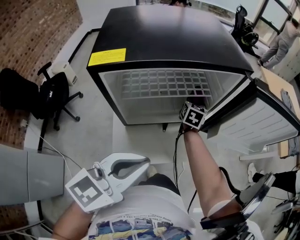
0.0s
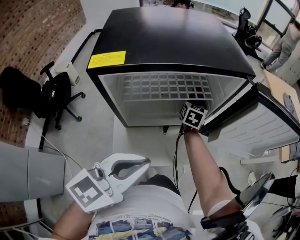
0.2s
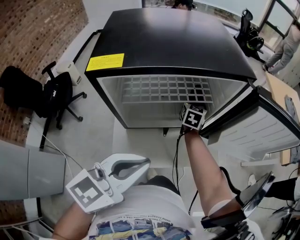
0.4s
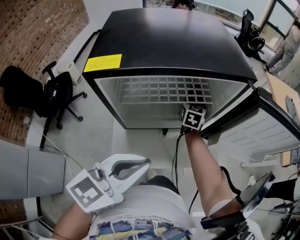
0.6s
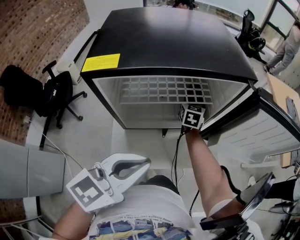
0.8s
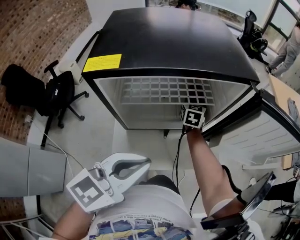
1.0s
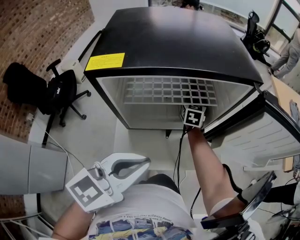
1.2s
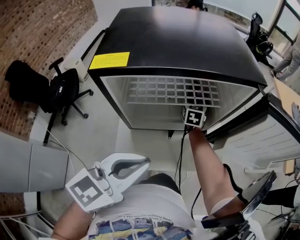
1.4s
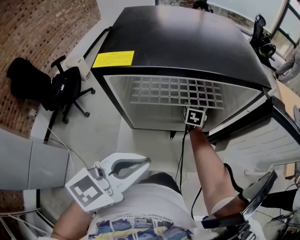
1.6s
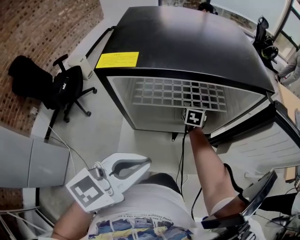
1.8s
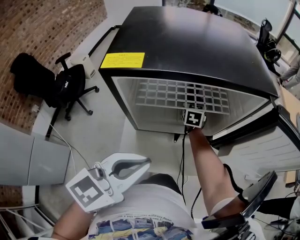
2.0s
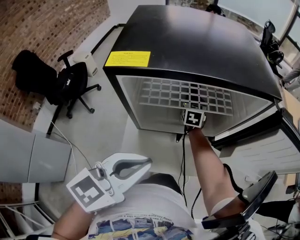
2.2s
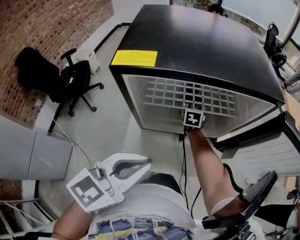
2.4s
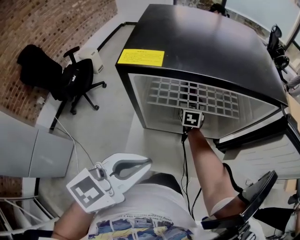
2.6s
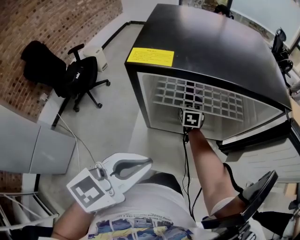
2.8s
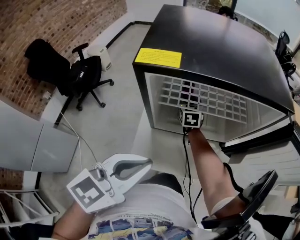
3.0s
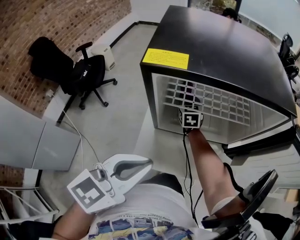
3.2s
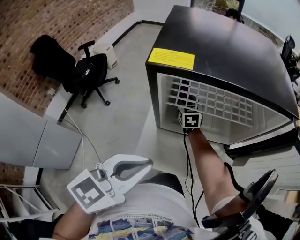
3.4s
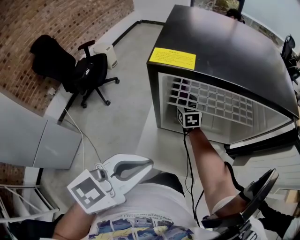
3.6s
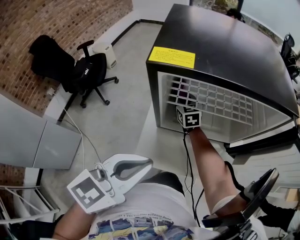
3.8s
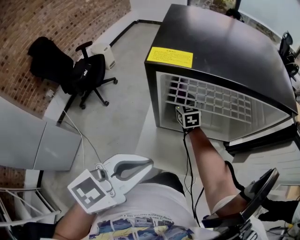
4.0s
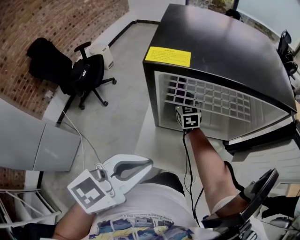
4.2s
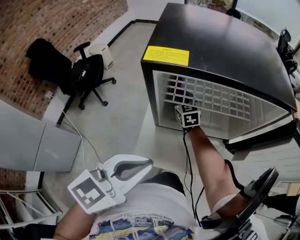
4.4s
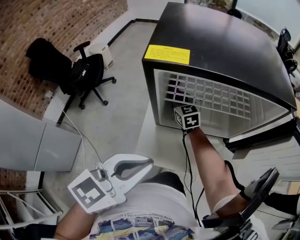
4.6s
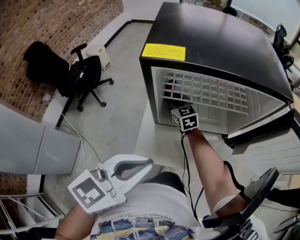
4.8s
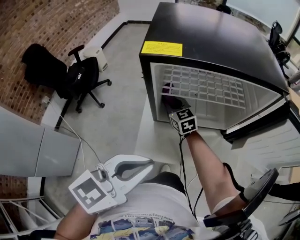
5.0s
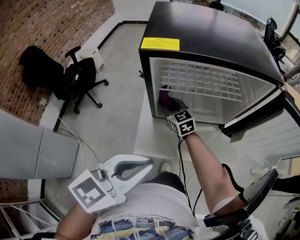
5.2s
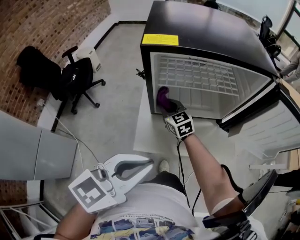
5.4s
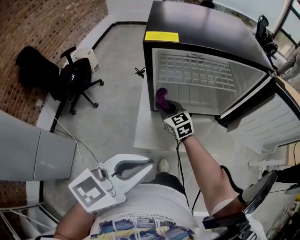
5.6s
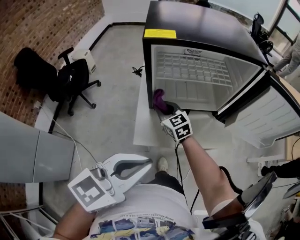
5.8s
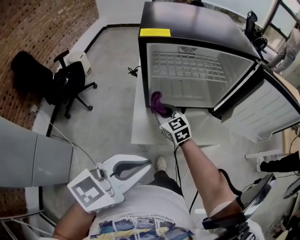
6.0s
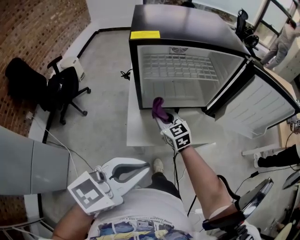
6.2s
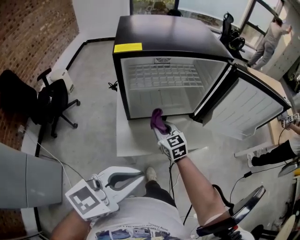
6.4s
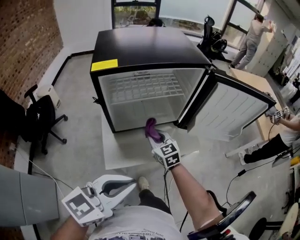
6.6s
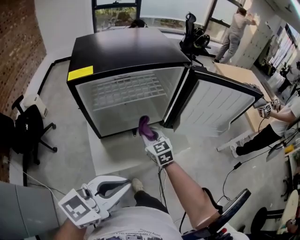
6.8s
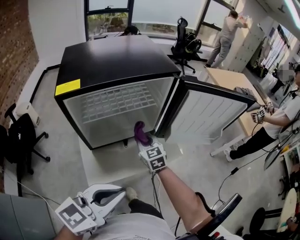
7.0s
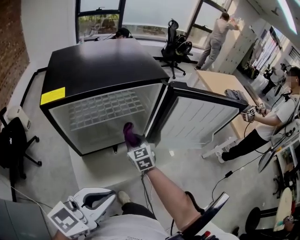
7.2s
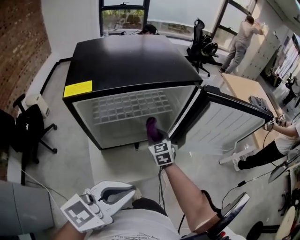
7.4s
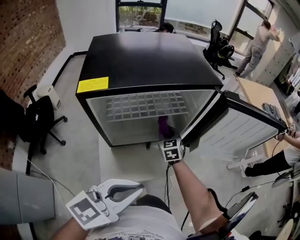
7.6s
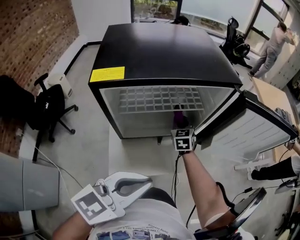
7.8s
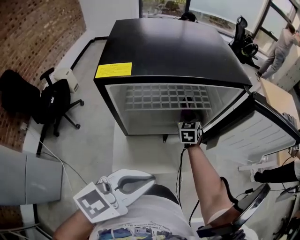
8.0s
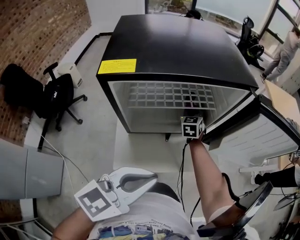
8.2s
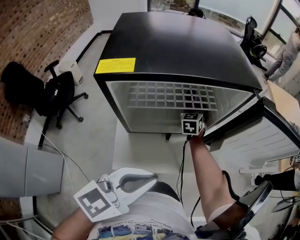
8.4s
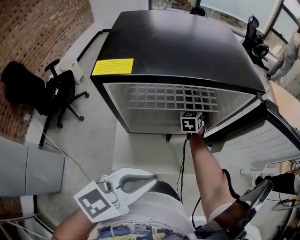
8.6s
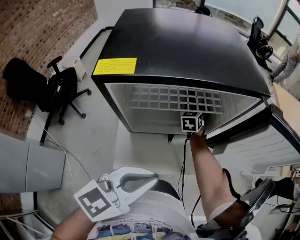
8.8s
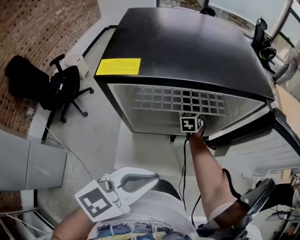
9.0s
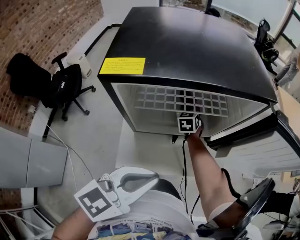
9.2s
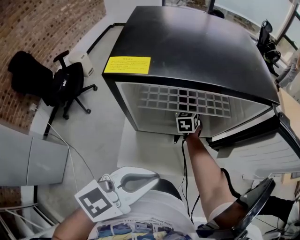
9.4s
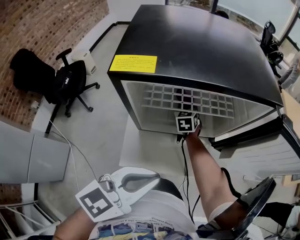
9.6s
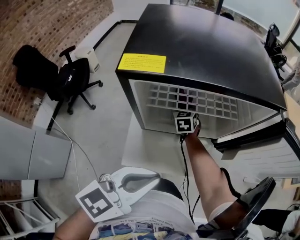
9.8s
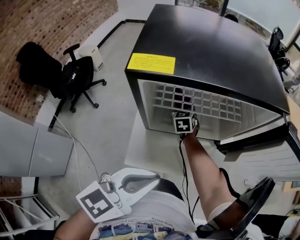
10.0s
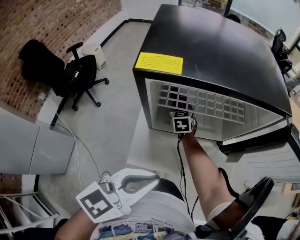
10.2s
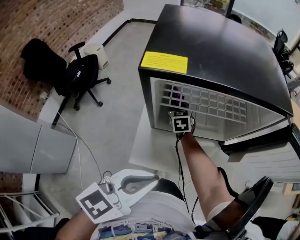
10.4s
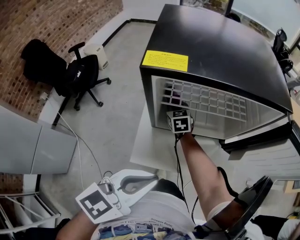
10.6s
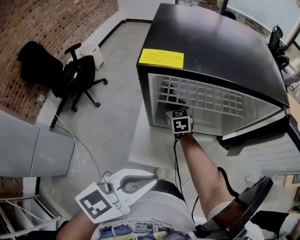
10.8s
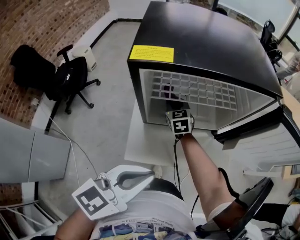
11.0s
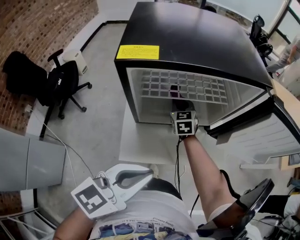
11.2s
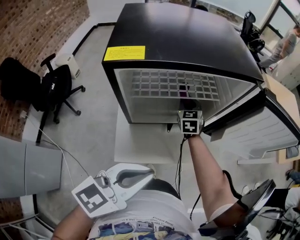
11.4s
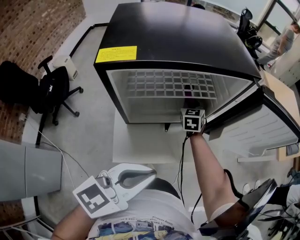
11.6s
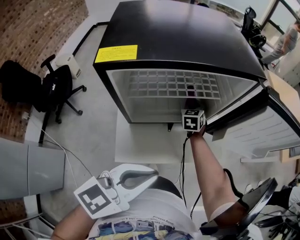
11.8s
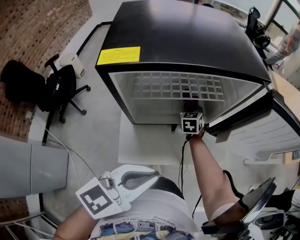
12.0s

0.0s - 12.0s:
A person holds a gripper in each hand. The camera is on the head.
0.0s - 1.6s: The right gripper moves to the left, some 10 cm.
1.6s - 3.0s: The left gripper goes some 5 cm to the left; the right gripper heads to the left, covering some 15 cm.
3.0s - 4.4s: The right gripper is displaced to the left by roughly 5 cm.
4.4s - 6.0s: The left gripper goes some 10 cm backward; the right gripper is displaced backward by about 20 cm.
6.0s - 7.6s: The left gripper ends up some 10 cm from where it was. Meanwhile the right gripper ends up about 25 cm from where it was, and rotates roughly 30 degrees.
7.6s - 9.0s: The right gripper goes some 10 cm forward and to the left.
9.0s - 10.4s: The right gripper goes roughly 20 cm to the left and backward, and rotates some 20 degrees. The left gripper shifts by about 5 cm.
10.4s - 12.0s: The right gripper goes roughly 20 cm to the right, and changes its angle by about 20 degrees.

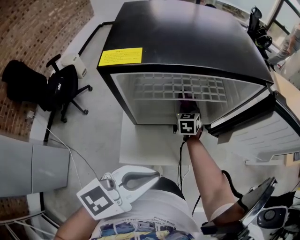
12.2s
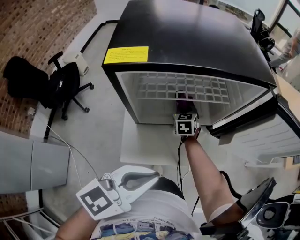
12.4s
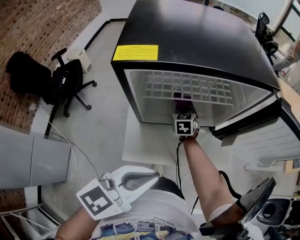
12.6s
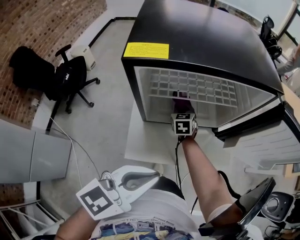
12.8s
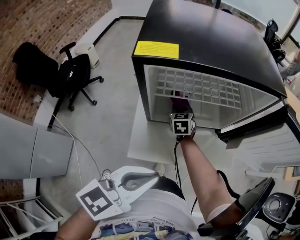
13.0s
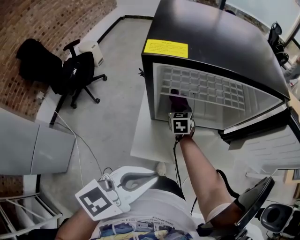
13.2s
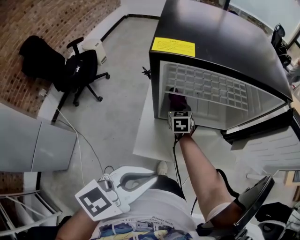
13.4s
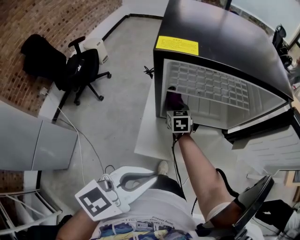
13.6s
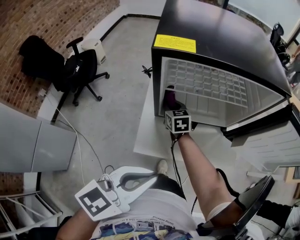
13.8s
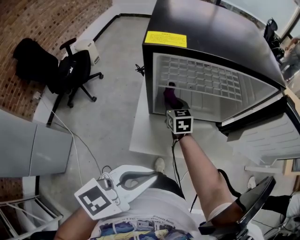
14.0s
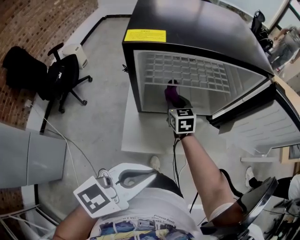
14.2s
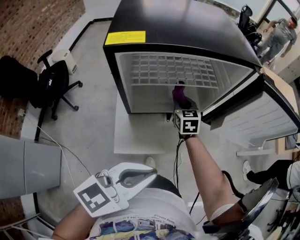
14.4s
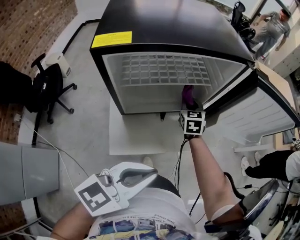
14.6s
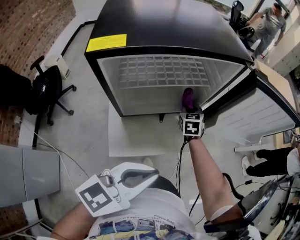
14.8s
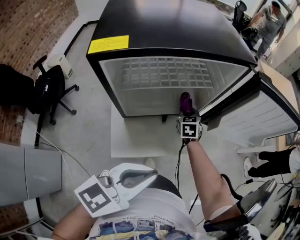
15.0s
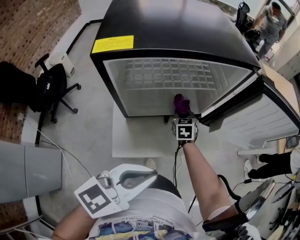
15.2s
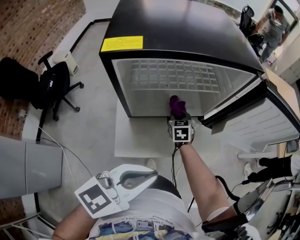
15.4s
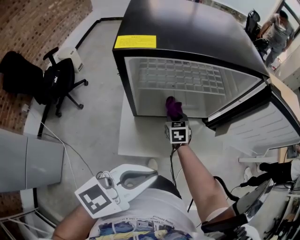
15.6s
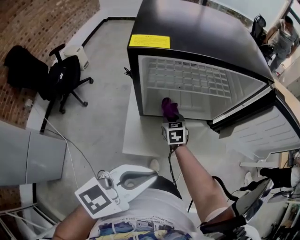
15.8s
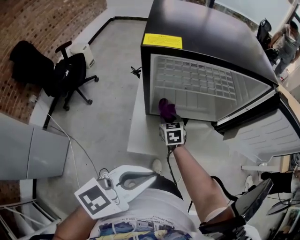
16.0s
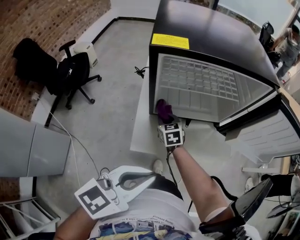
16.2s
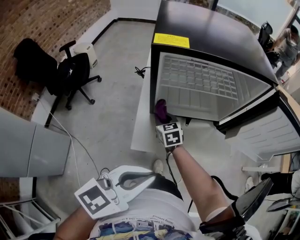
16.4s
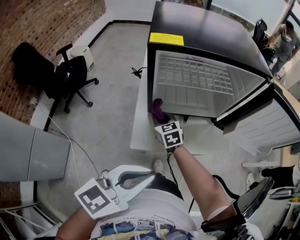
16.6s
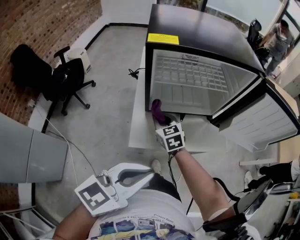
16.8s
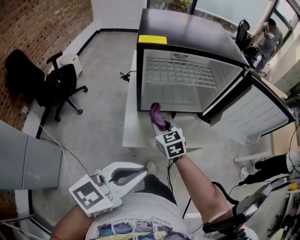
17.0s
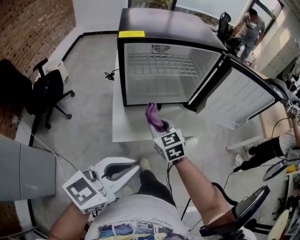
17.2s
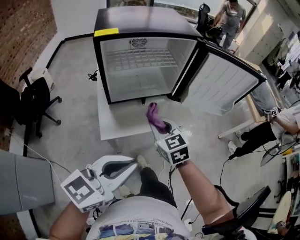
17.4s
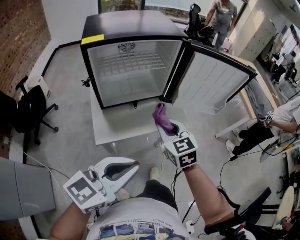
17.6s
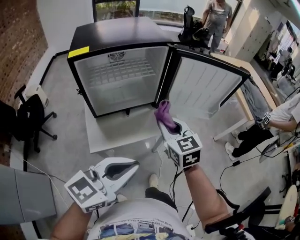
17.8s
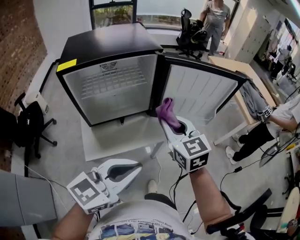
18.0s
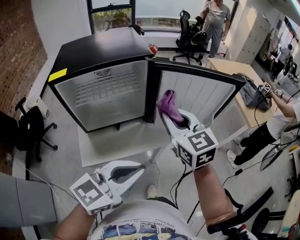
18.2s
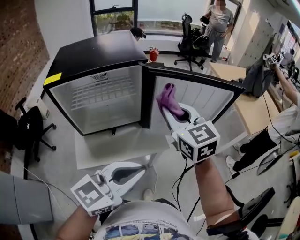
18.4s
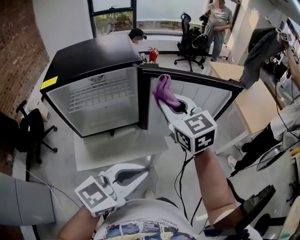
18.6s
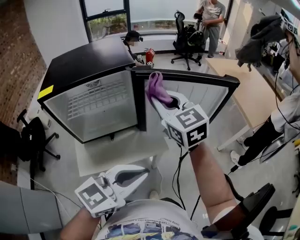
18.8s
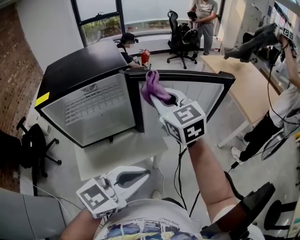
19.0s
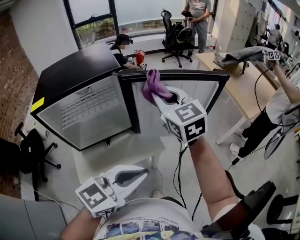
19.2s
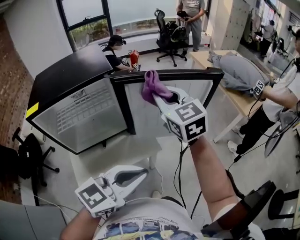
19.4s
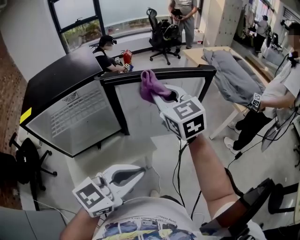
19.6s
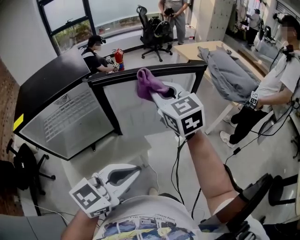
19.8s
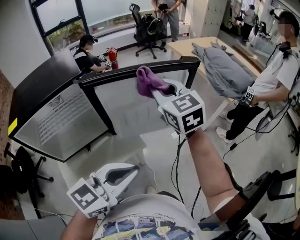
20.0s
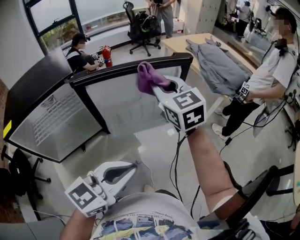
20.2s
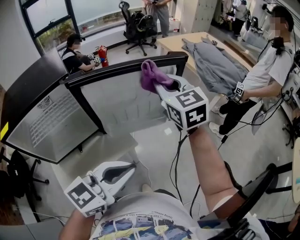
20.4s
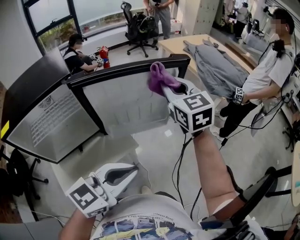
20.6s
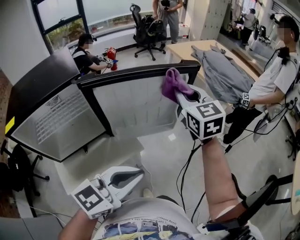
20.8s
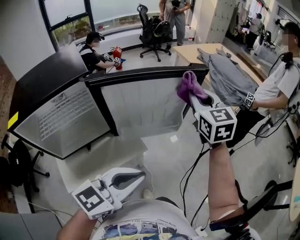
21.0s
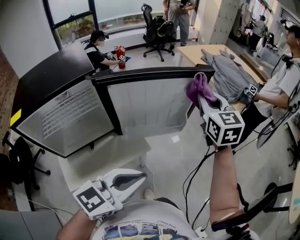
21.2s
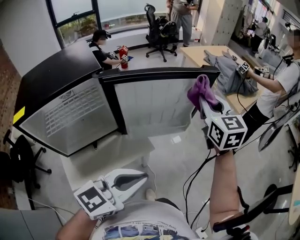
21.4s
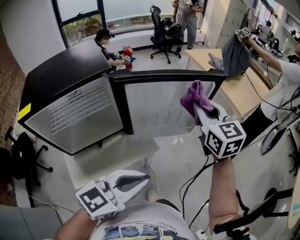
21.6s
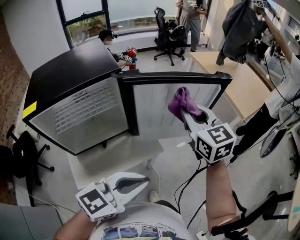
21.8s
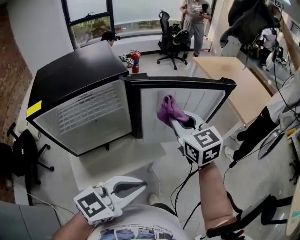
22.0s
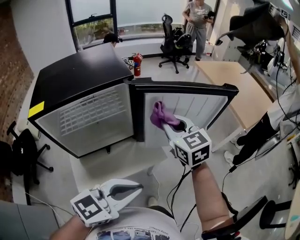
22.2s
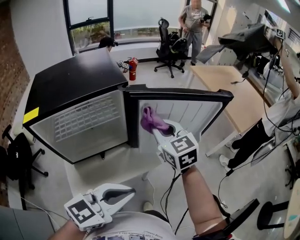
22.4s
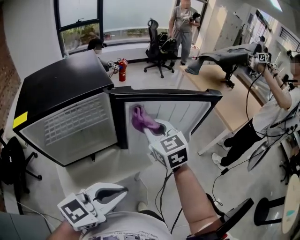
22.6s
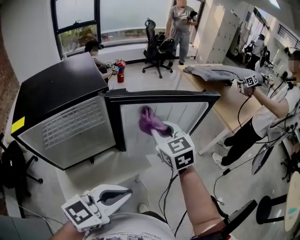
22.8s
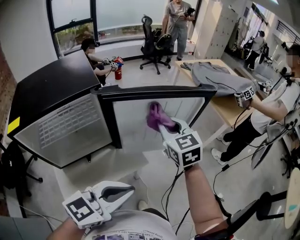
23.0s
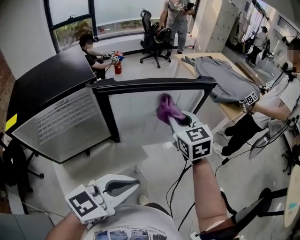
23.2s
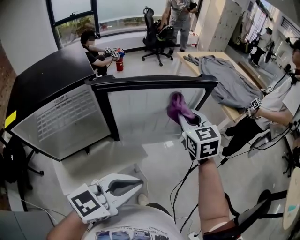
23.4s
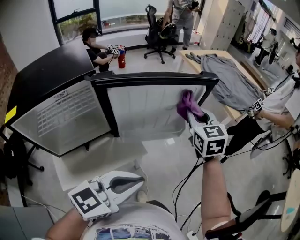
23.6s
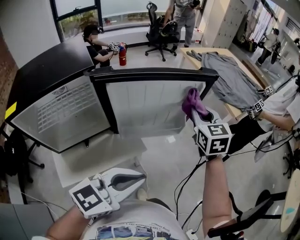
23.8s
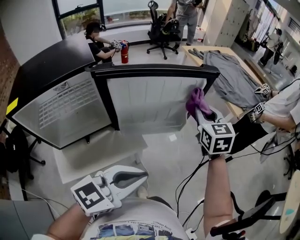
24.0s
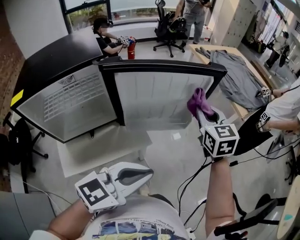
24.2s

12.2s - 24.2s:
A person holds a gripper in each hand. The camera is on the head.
12.2s - 13.8s: The right gripper travels to the left and backward by some 20 cm, and swivels roughly 30 degrees, while the left gripper goes approximately 5 cm backward.
13.8s - 15.2s: The right gripper moves approximately 20 cm, and turns by about 30 degrees. The left gripper changes place by about 5 cm.
15.2s - 16.6s: The right gripper moves to the left and backward, about 25 cm, and rotates roughly 30 degrees. The left gripper shifts about 10 cm backward and to the left.
16.6s - 18.2s: The right gripper goes some 50 cm to the right and upward, and rotates about 30 degrees, while the left gripper moves to the right, roughly 20 cm, and turns by about 20 degrees.
18.2s - 19.8s: The left gripper travels to the right and forward by about 10 cm. The right gripper goes about 15 cm forward and to the right.
19.8s - 21.2s: The right gripper goes some 15 cm to the right, and turns by about 20 degrees.
21.2s - 22.6s: The left gripper heads to the left, covering some 10 cm. The right gripper travels to the left by approximately 25 cm, and turns by some 20 degrees.
22.6s - 24.2s: The right gripper goes some 20 cm to the right, while the left gripper is displaced to the right by approximately 10 cm.
